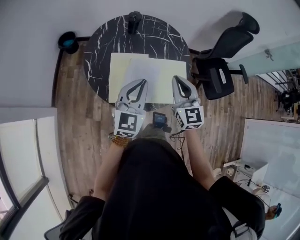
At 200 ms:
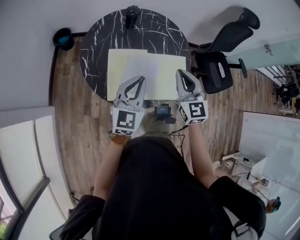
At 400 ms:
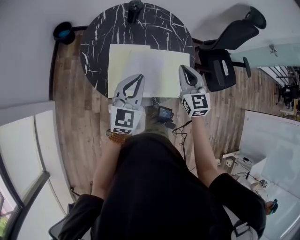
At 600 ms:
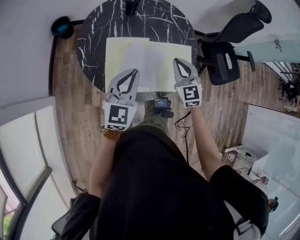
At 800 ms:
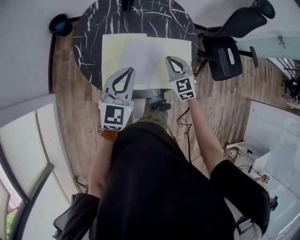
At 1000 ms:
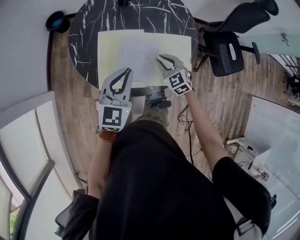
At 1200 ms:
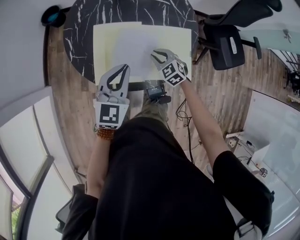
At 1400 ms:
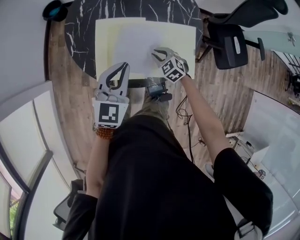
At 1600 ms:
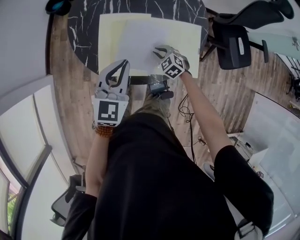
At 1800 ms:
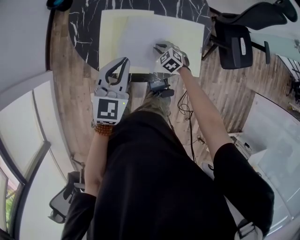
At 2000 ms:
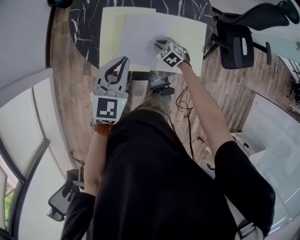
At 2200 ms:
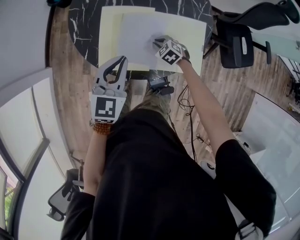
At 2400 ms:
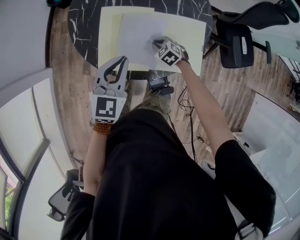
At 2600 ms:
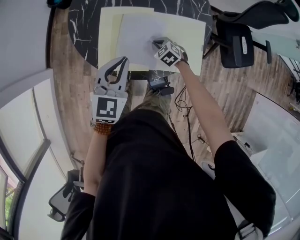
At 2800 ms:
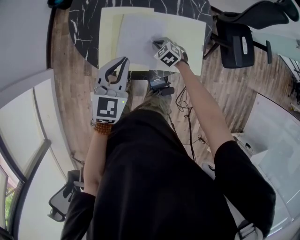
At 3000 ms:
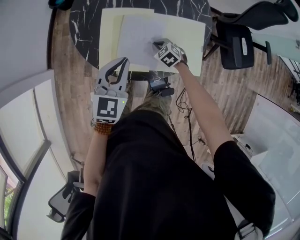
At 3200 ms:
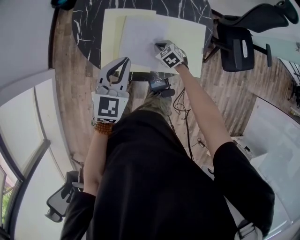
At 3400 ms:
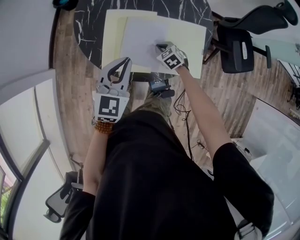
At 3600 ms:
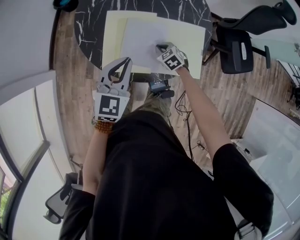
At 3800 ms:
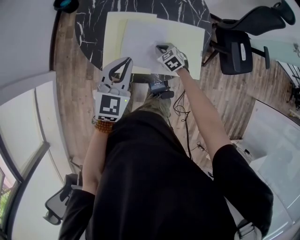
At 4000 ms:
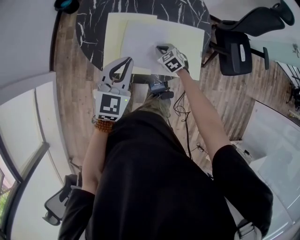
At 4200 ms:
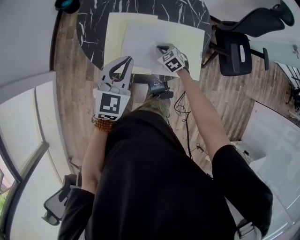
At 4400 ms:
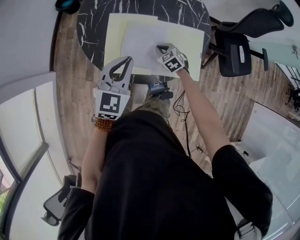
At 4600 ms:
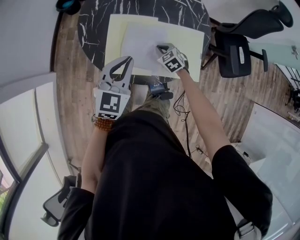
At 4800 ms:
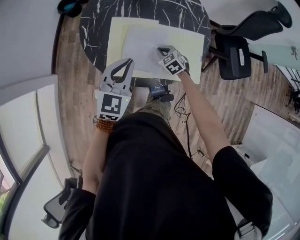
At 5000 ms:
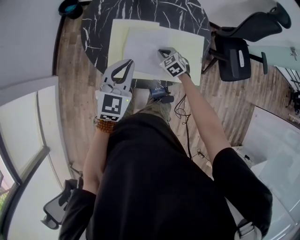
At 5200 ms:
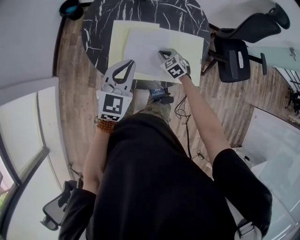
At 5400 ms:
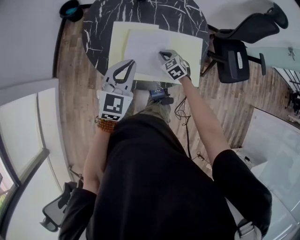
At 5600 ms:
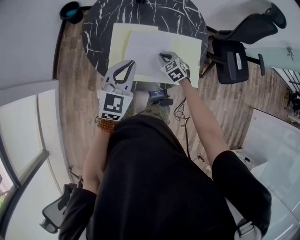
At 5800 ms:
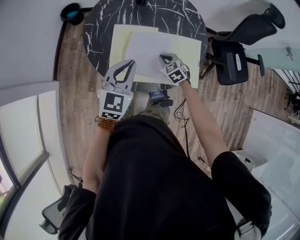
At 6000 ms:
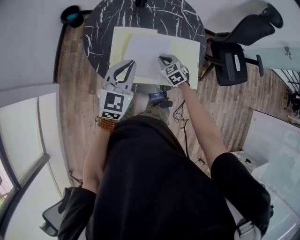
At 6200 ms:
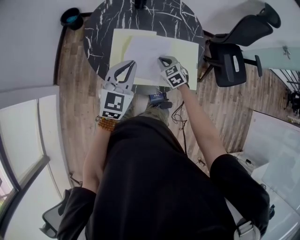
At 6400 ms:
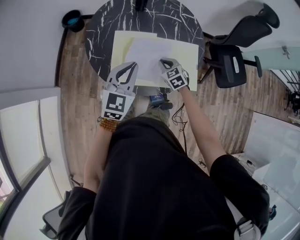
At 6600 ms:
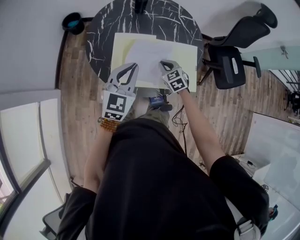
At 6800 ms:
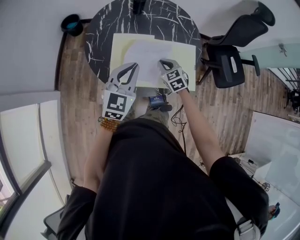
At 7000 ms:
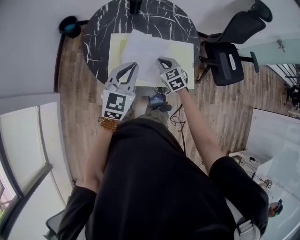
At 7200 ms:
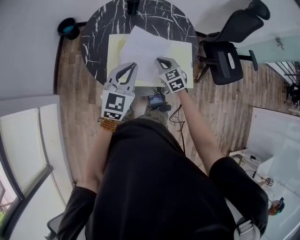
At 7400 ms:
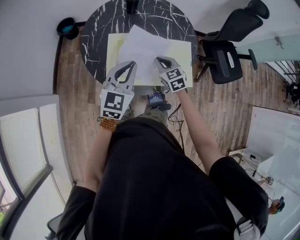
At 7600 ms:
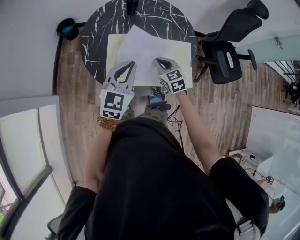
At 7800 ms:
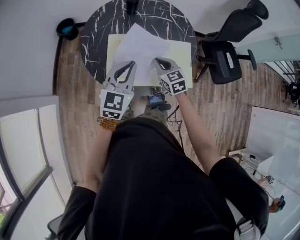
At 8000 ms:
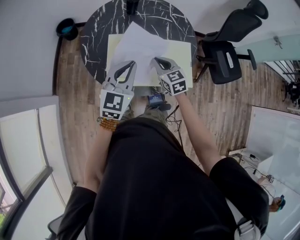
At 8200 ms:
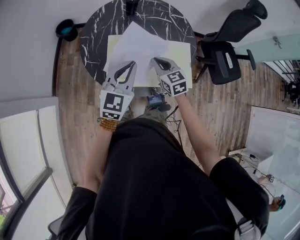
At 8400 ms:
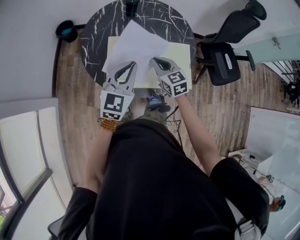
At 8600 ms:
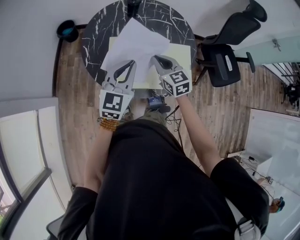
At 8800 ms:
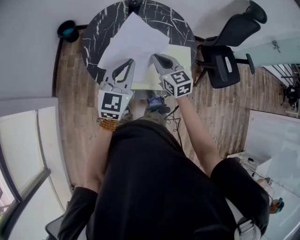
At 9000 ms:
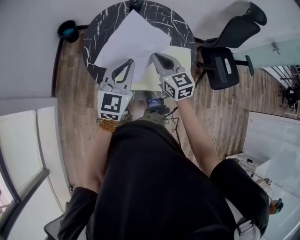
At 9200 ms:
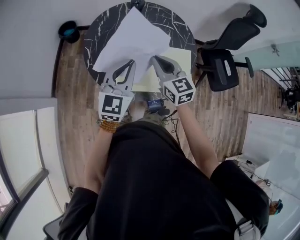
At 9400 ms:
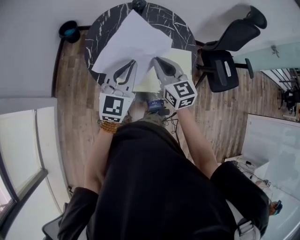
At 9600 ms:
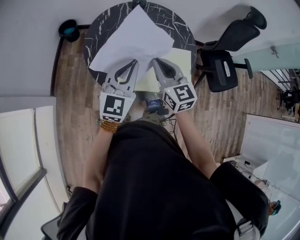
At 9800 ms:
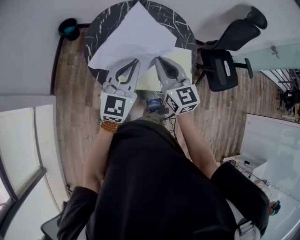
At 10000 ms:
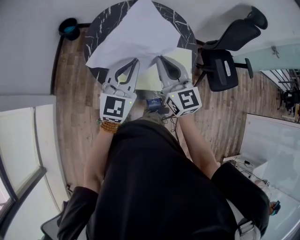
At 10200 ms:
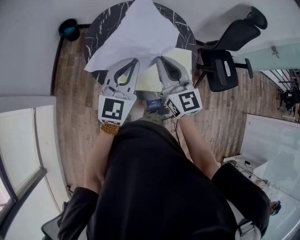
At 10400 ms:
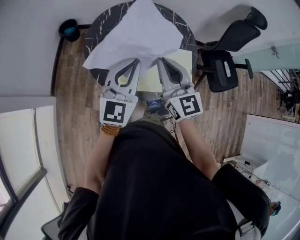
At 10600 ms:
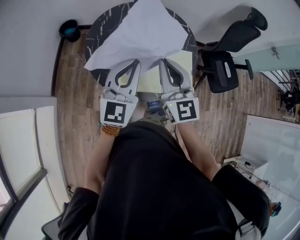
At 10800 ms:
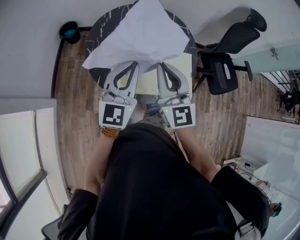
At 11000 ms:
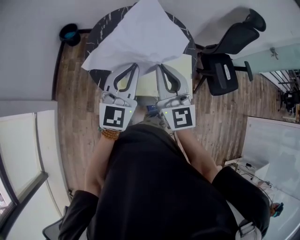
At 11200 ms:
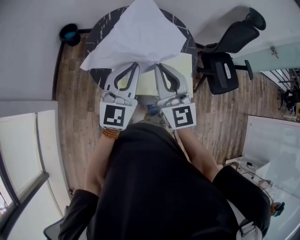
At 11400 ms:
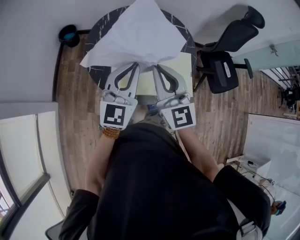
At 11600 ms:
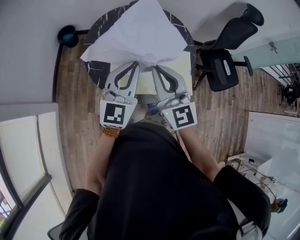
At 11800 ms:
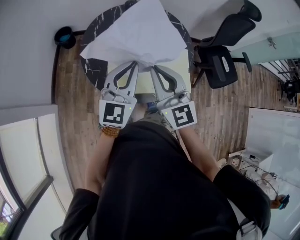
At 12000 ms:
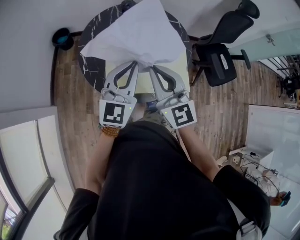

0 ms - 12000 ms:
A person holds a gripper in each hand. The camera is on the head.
0 ms - 1600 ms: The left gripper moves downward, roughly 15 cm. Meanwhile the right gripper moves downward, roughly 40 cm, and angles its fingers downward, by roughly 50 degrees.
1600 ms - 4400 ms: The grippers make only small movements.
4400 ms - 6000 ms: The right gripper goes some 5 cm upward.
6000 ms - 7600 ms: The right gripper goes approximately 10 cm upward.
7600 ms - 9000 ms: The right gripper travels upward by some 15 cm.
9000 ms - 10400 ms: The right gripper moves upward and backward, about 10 cm. Meanwhile the left gripper heads upward, covering approximately 5 cm.
10400 ms - 12000 ms: The grippers stay close to where they were, moving slightly.

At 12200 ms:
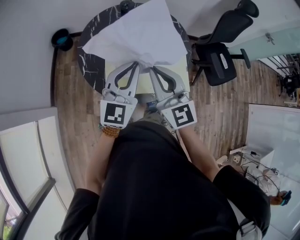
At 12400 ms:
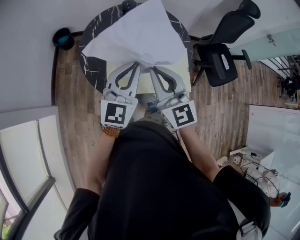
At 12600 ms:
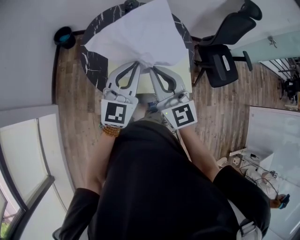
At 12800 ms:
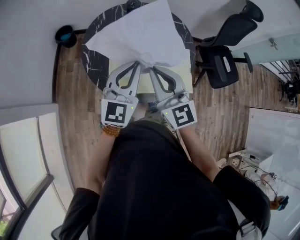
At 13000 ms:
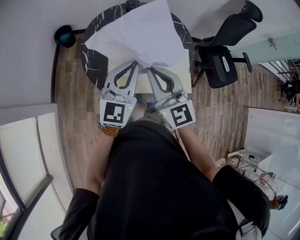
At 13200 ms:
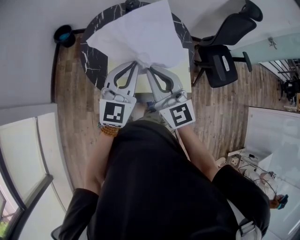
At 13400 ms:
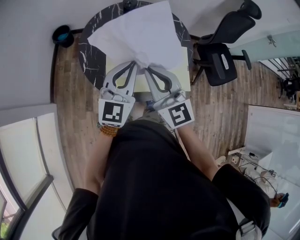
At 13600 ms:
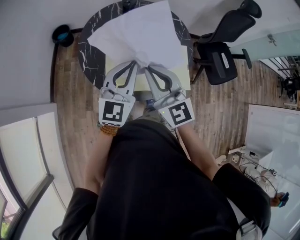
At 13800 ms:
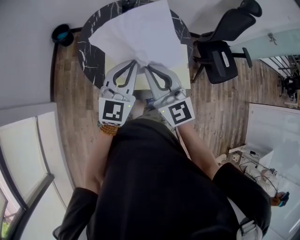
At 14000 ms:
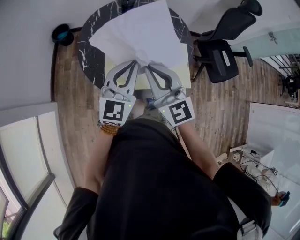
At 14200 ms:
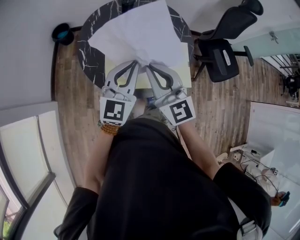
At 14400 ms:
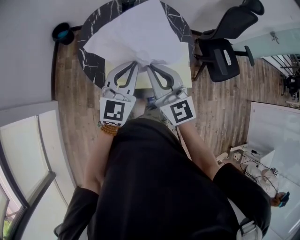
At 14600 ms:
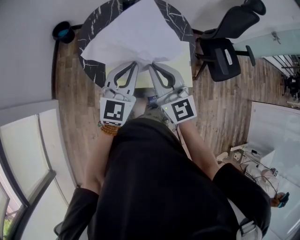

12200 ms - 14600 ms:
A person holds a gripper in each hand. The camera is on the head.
12200 ms - 14600 ms: There are only small adjustments of the grippers.

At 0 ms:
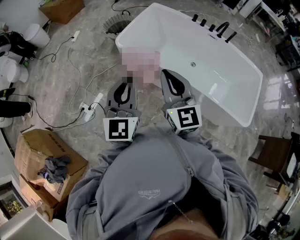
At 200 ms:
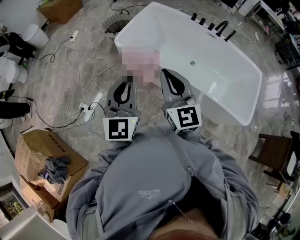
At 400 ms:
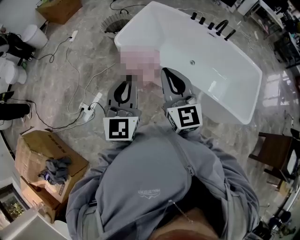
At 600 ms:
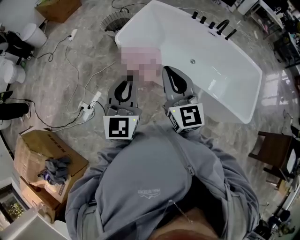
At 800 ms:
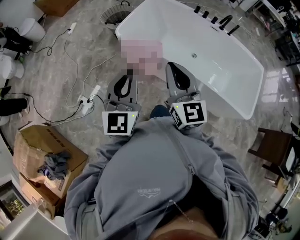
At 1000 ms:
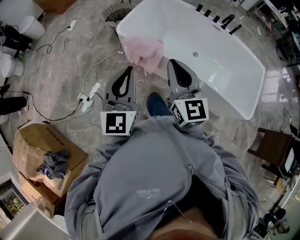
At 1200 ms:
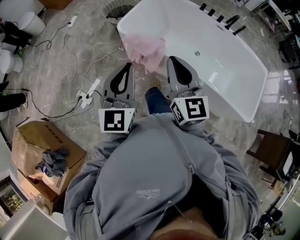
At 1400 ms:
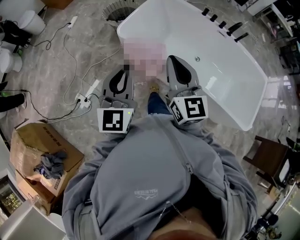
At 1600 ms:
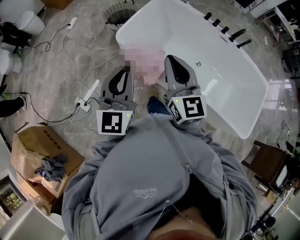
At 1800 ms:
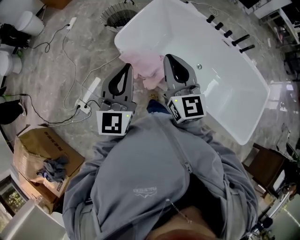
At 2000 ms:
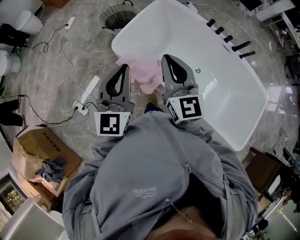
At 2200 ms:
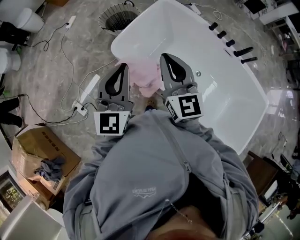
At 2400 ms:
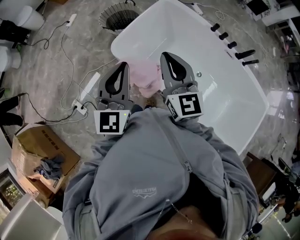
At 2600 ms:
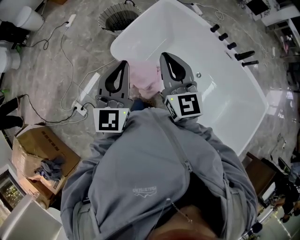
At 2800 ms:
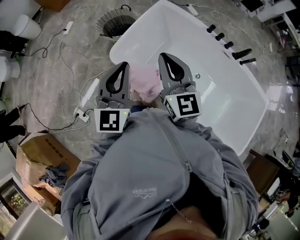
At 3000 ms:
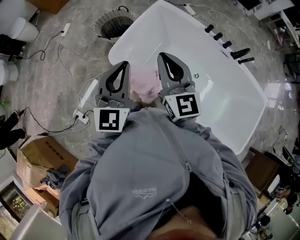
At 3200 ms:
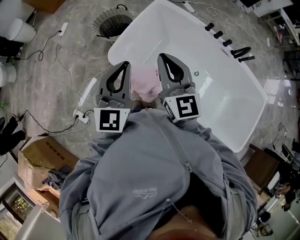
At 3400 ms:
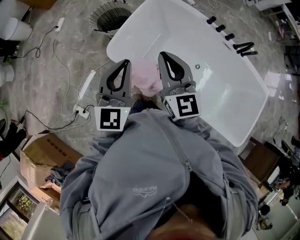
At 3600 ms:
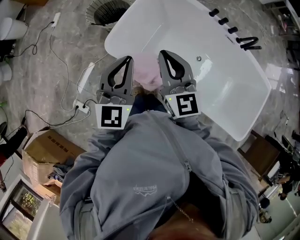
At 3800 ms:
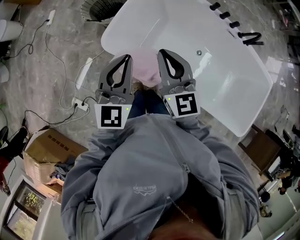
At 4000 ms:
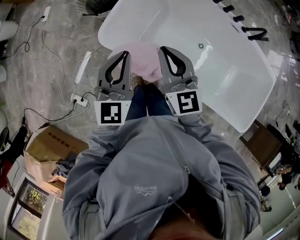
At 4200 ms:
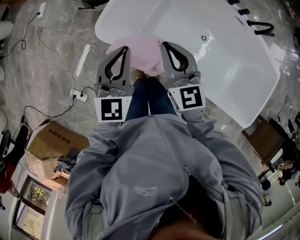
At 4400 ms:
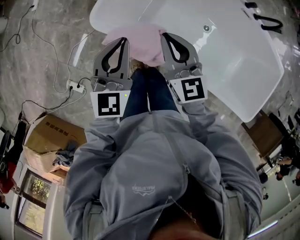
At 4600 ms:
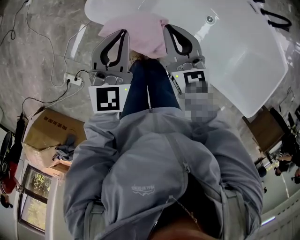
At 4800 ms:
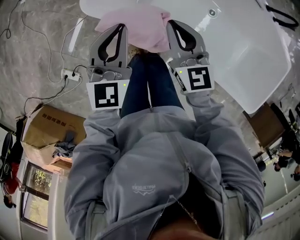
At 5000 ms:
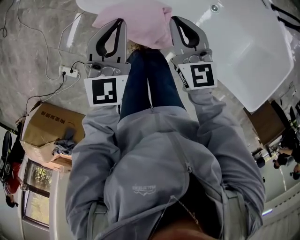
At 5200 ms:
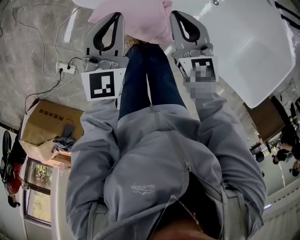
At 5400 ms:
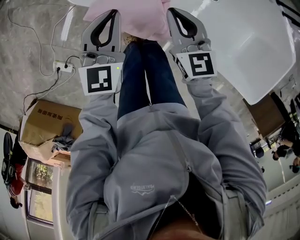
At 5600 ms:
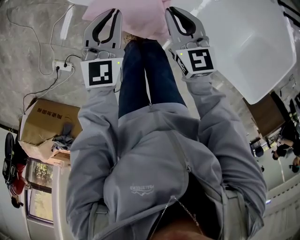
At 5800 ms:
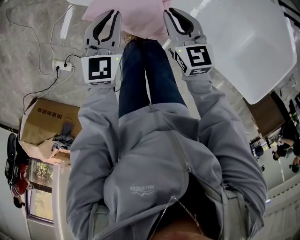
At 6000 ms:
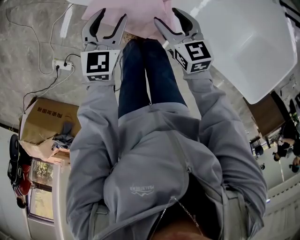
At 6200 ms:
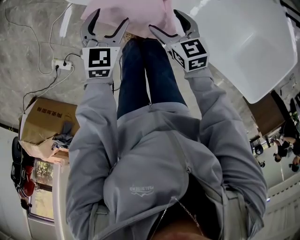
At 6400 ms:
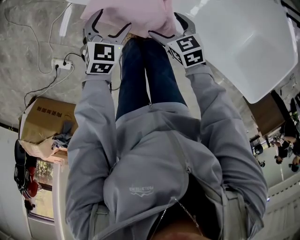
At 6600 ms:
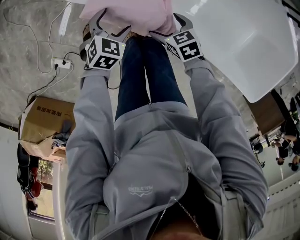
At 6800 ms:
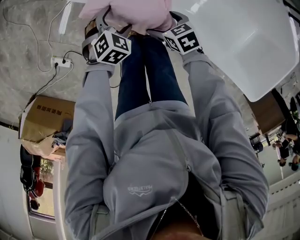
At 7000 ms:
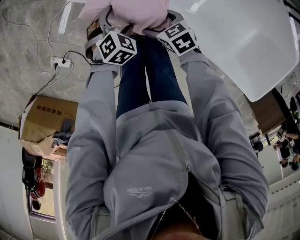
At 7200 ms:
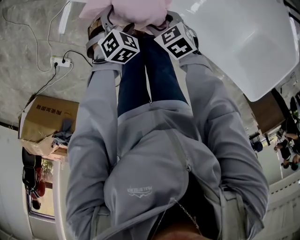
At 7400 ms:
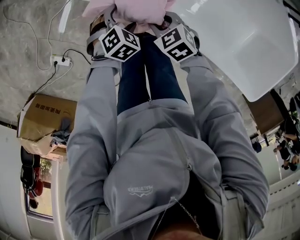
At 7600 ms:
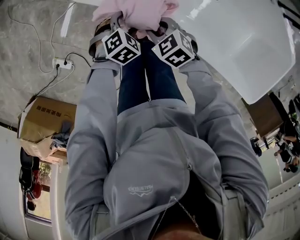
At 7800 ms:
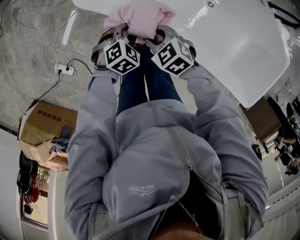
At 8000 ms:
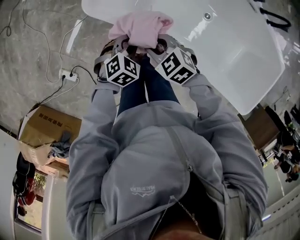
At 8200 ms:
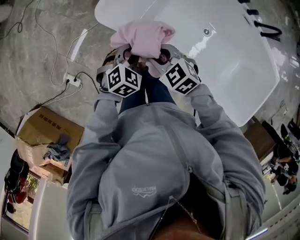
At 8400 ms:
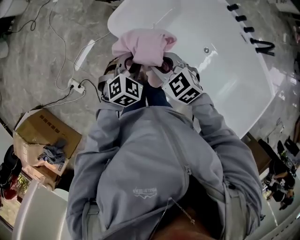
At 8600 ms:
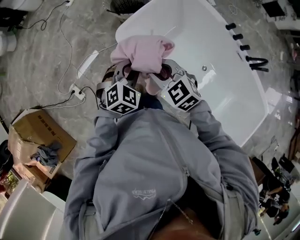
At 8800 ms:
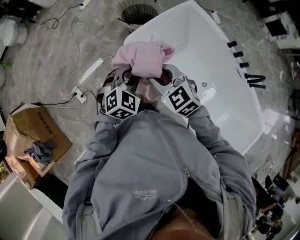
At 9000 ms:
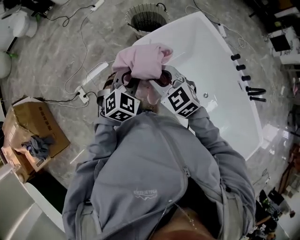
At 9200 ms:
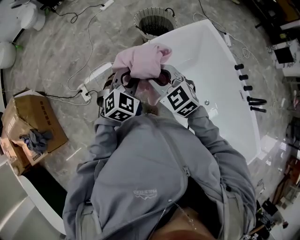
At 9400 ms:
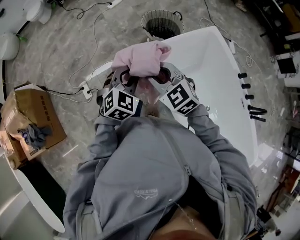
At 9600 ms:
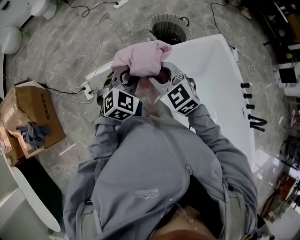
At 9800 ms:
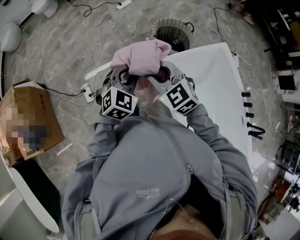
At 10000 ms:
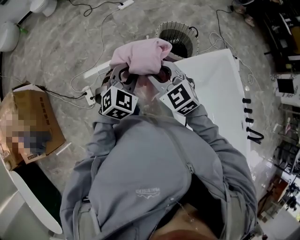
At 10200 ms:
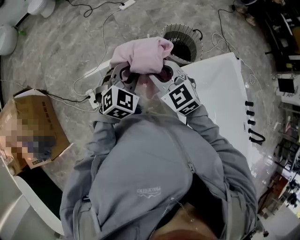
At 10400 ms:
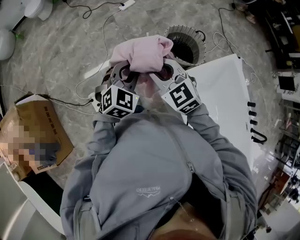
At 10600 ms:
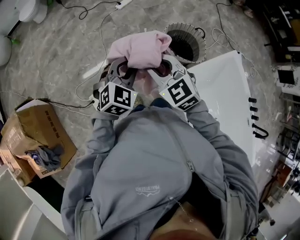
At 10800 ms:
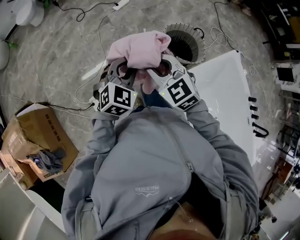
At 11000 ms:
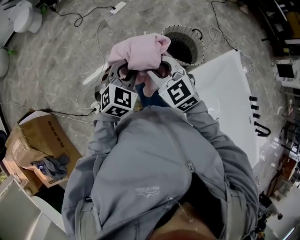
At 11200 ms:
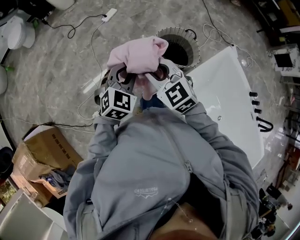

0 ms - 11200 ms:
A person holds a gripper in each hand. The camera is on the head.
0 ms - 1600 ms: The two grippers go approximately 15 cm forward.
1600 ms - 3200 ms: The grippers both shift forward by roughly 25 cm.
3200 ms - 4800 ms: Both grippers travel together downward, approximately 25 cm.
4800 ms - 6400 ms: The two grippers go roughly 25 cm downward. The right gripper points its fingers about 30 degrees further downward, and opens up. The left gripper tips its fingers downward by roughly 30 degrees, and opens.
6400 ms - 8000 ms: The right gripper shifts about 15 cm upward and to the left, swivels some 30 degrees, and closes up. Meanwhile the left gripper is displaced upward by roughly 5 cm, and closes up.
8000 ms - 9600 ms: Both grippers move upward, approximately 30 cm. The left gripper changes its angle by approximately 50 degrees, while the right gripper rotates approximately 40 degrees.
9600 ms - 11200 ms: The grippers both shift forward by roughly 35 cm.
